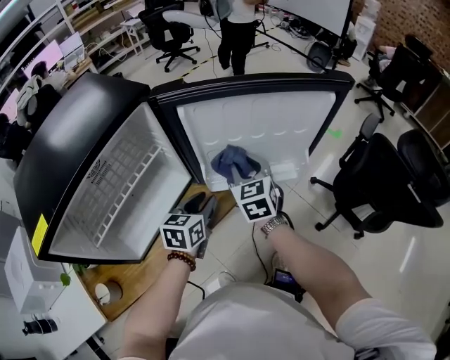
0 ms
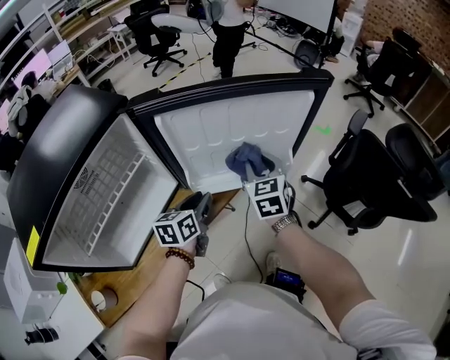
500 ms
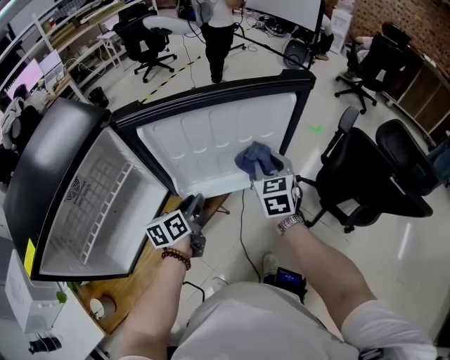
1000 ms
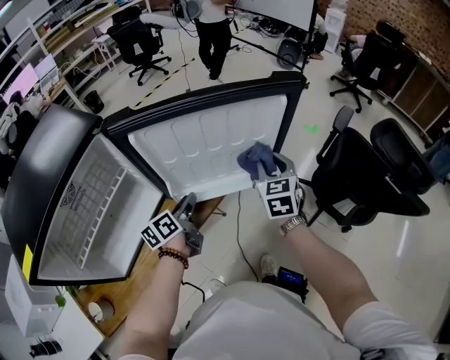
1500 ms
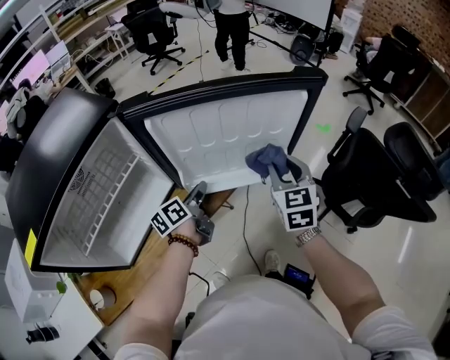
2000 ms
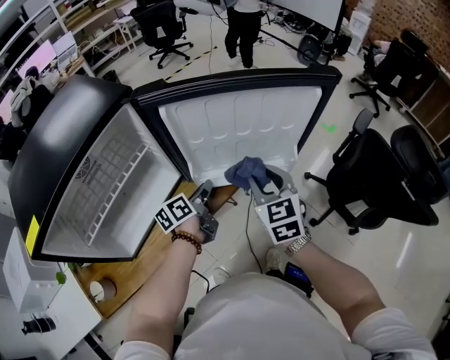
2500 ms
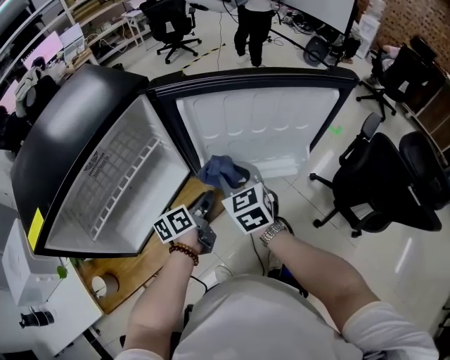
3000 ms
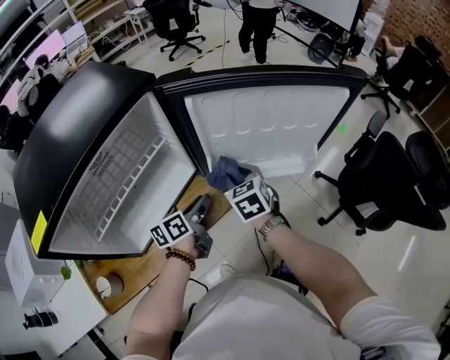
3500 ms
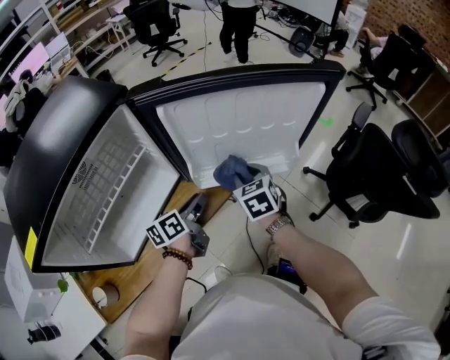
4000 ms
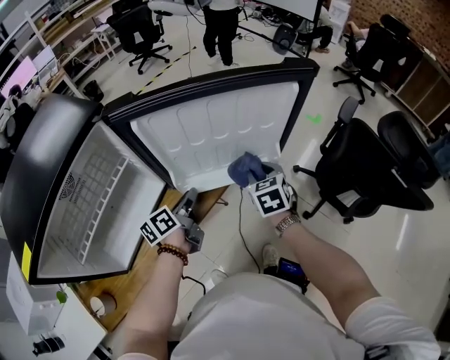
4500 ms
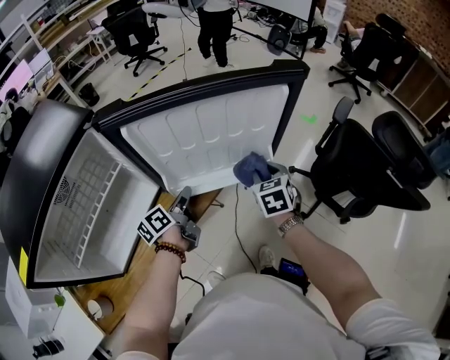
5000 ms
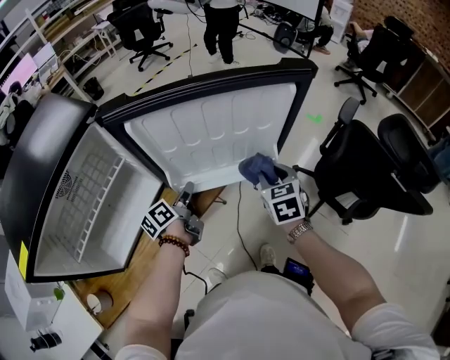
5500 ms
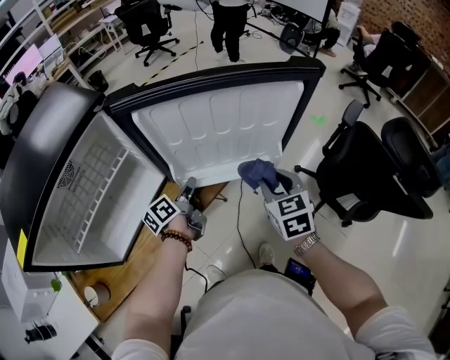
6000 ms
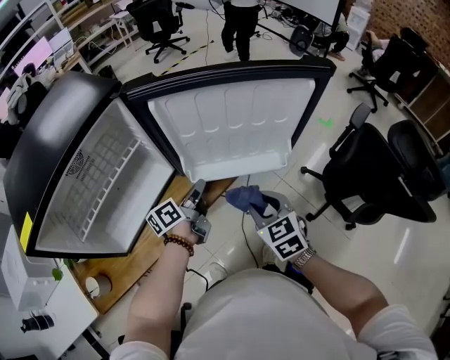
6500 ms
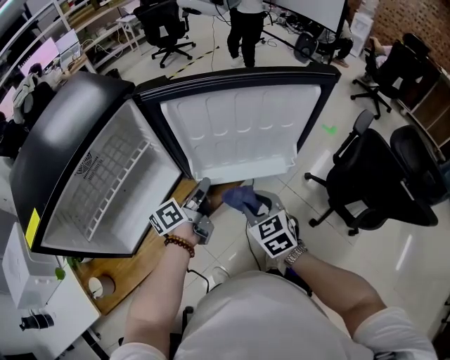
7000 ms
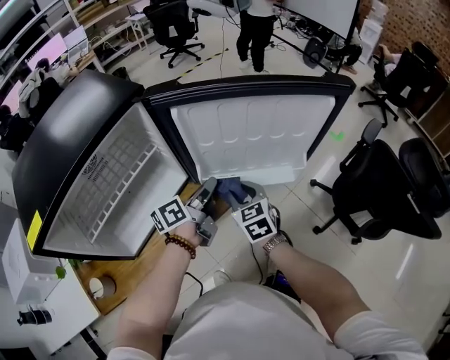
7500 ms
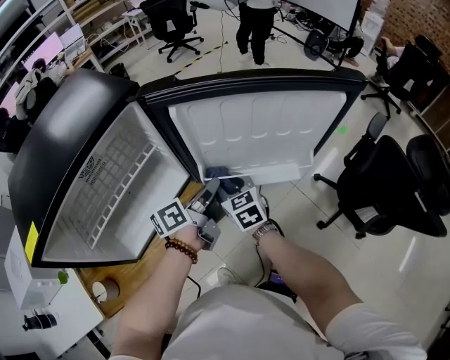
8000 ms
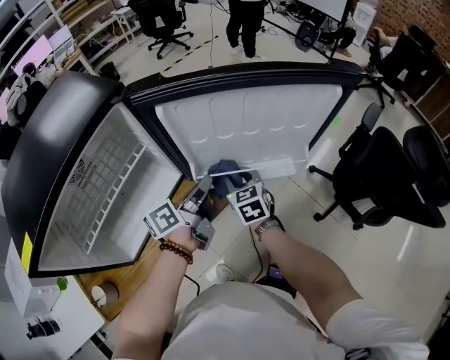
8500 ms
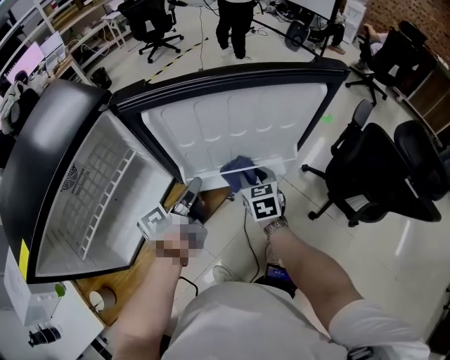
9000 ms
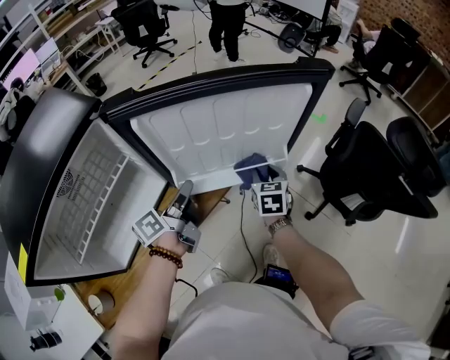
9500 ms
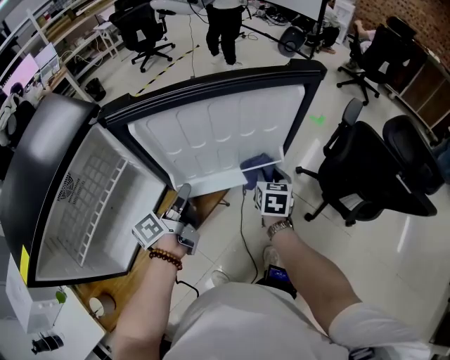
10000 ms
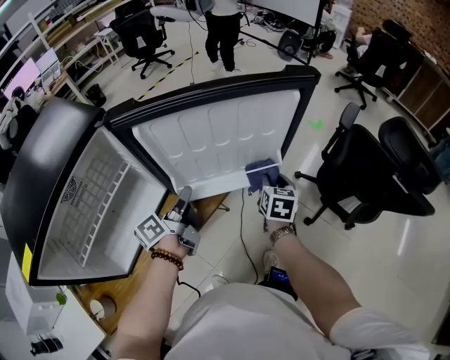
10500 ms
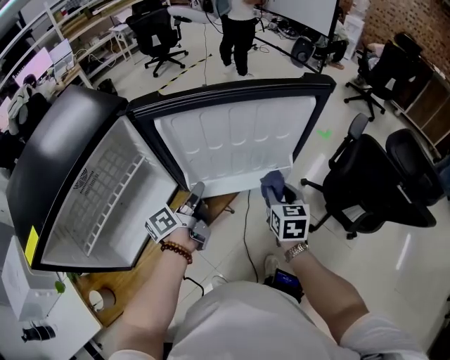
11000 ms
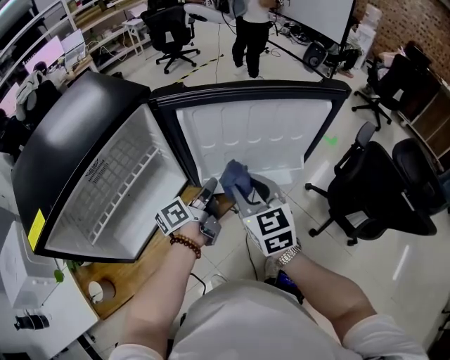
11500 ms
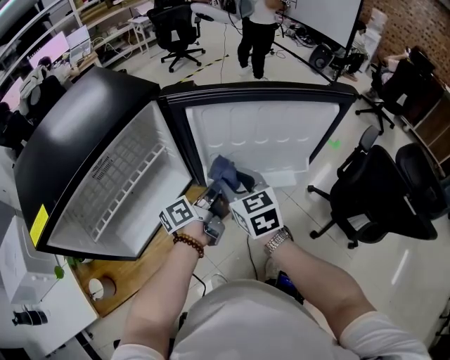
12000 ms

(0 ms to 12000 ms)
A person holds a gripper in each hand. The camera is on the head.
0 ms - 2000 ms: The left gripper shifts some 5 cm forward, and rotates around the line of its fingers by roughly 40 degrees, counterclockwise from behind, while the right gripper moves to the right, about 15 cm.
2000 ms - 4000 ms: The right gripper shifts some 15 cm to the left and downward, and changes its angle by some 20 degrees. Meanwhile the left gripper goes approximately 5 cm backward.
4000 ms - 6000 ms: The left gripper heads forward, covering roughly 5 cm. The right gripper moves to the right, some 15 cm.
6000 ms - 8000 ms: The left gripper heads upward, covering approximately 5 cm. Meanwhile the right gripper travels to the left by roughly 20 cm.
8000 ms - 10000 ms: The right gripper moves to the right, about 25 cm, and changes its angle by roughly 40 degrees.
10000 ms - 12000 ms: The right gripper goes about 25 cm to the left, upward and backward, and turns by roughly 40 degrees.

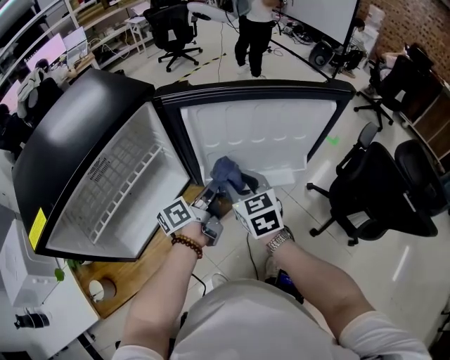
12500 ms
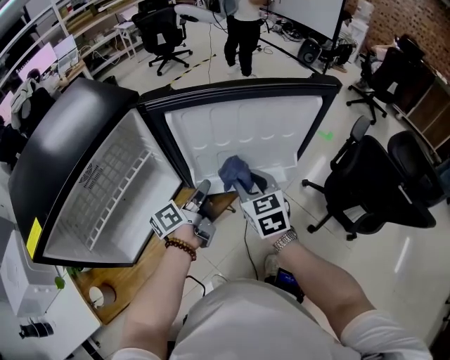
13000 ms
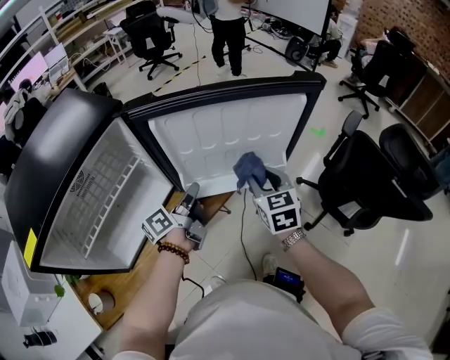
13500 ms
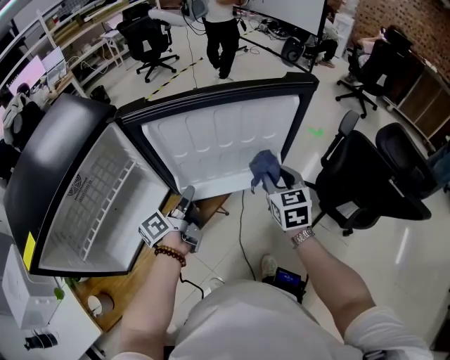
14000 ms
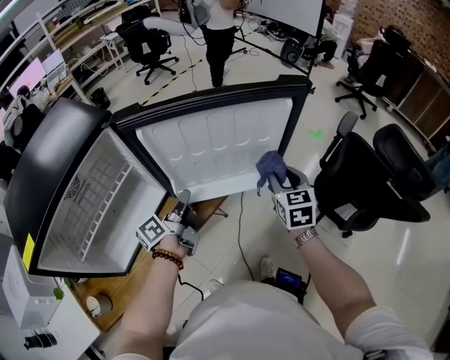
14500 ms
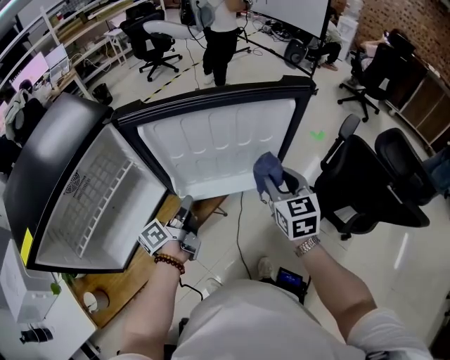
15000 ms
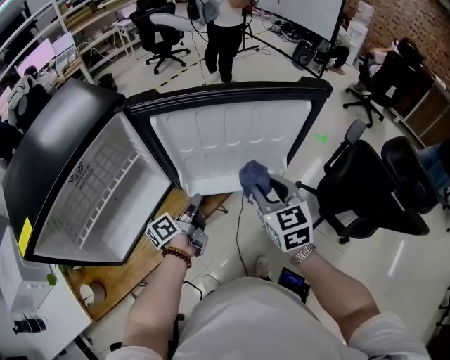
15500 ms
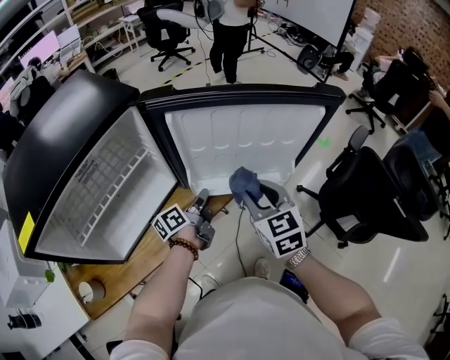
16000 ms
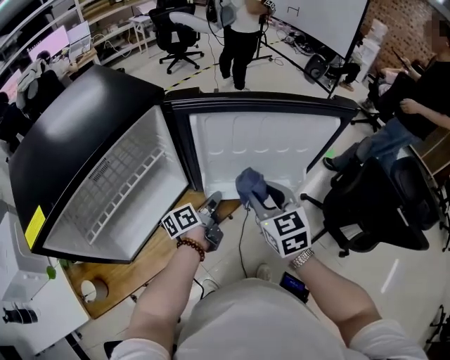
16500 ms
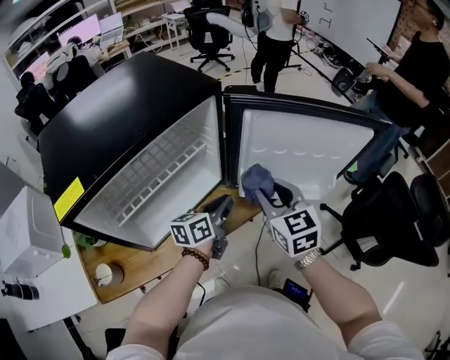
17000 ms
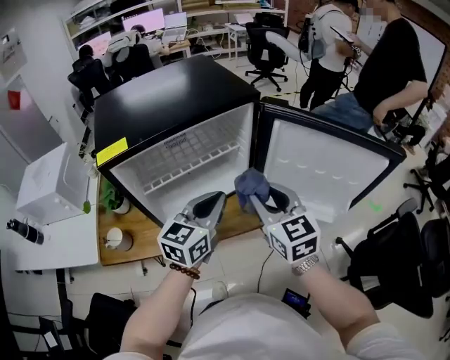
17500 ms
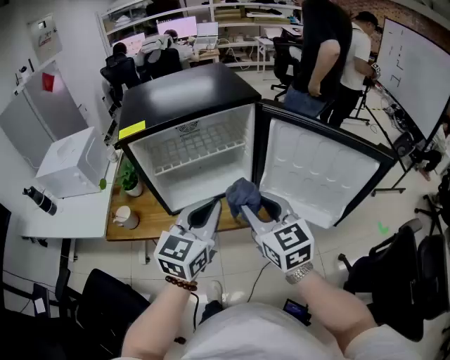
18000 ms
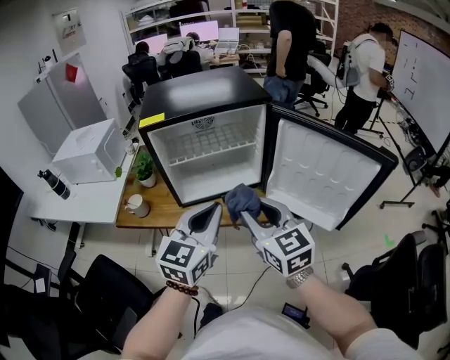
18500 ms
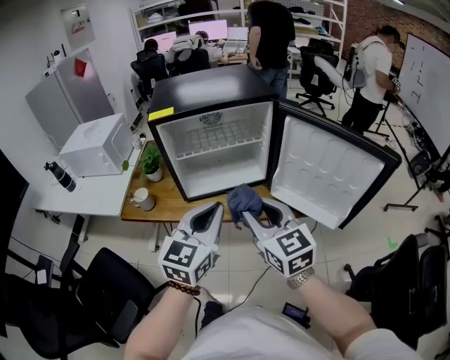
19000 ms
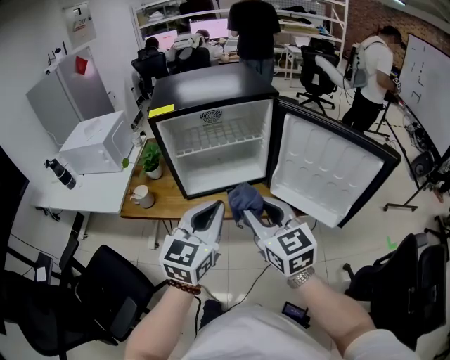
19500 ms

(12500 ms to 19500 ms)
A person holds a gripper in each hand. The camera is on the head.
12500 ms - 14500 ms: The right gripper heads to the right, covering roughly 25 cm, and swivels some 20 degrees.
14500 ms - 16000 ms: The left gripper travels downward by roughly 10 cm. Meanwhile the right gripper is displaced to the left and backward by roughly 15 cm, and rotates about 20 degrees.
16000 ms - 17500 ms: The right gripper heads to the left and upward, covering some 20 cm, and rotates roughly 30 degrees; the left gripper travels upward, backward and to the left by approximately 25 cm, and rolls clockwise, seen from behind, by roughly 60 degrees.
17500 ms - 19500 ms: Both grippers travel together backward, roughly 15 cm. The left gripper turns by about 30 degrees. The right gripper turns by roughly 20 degrees.

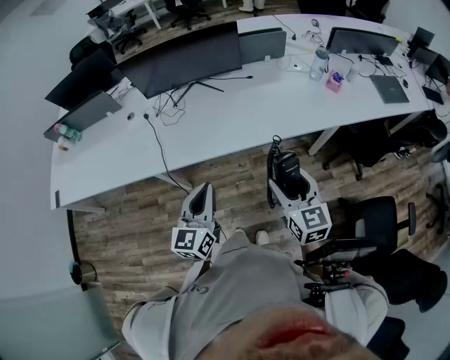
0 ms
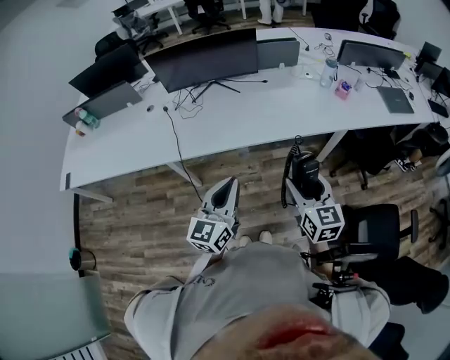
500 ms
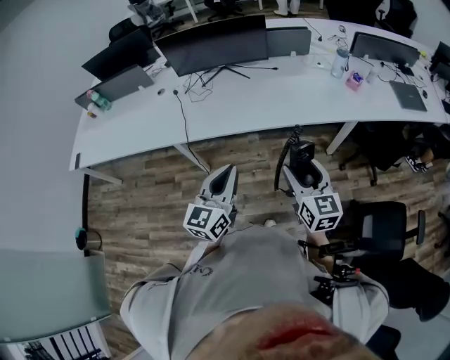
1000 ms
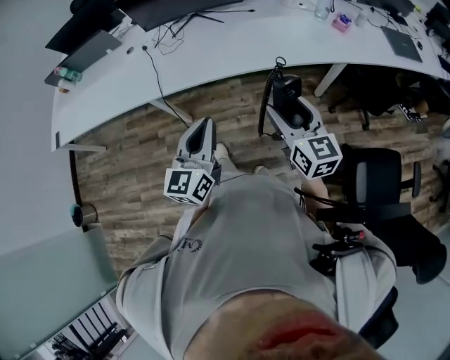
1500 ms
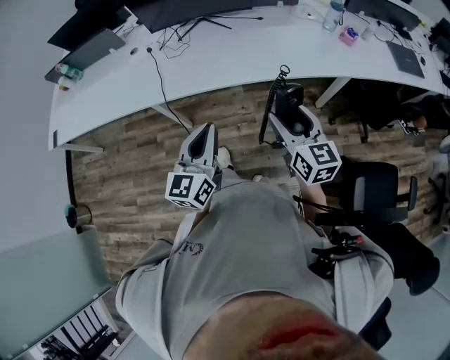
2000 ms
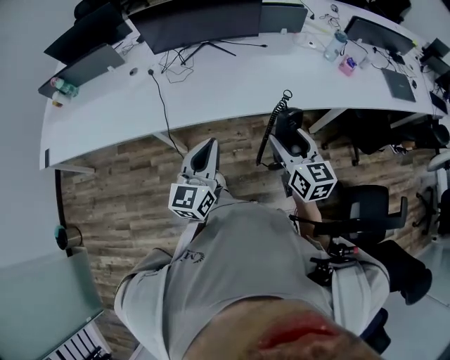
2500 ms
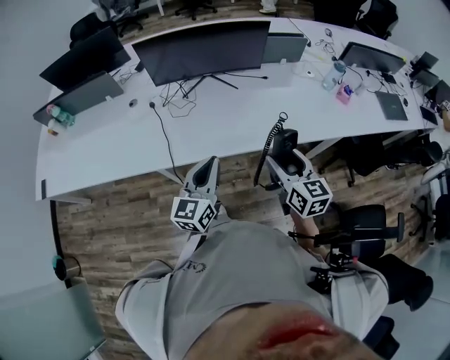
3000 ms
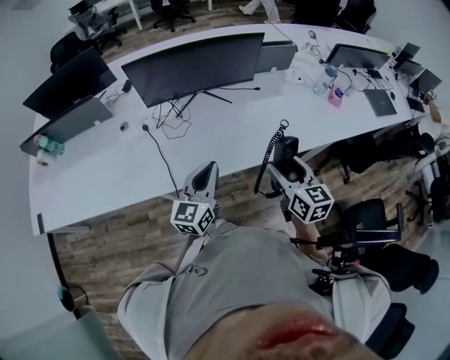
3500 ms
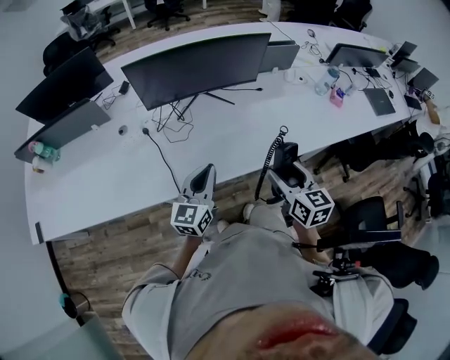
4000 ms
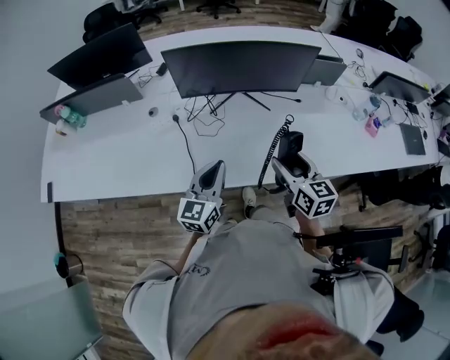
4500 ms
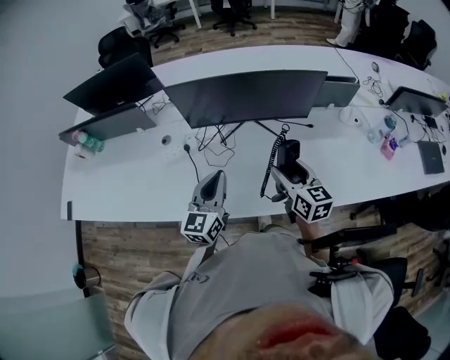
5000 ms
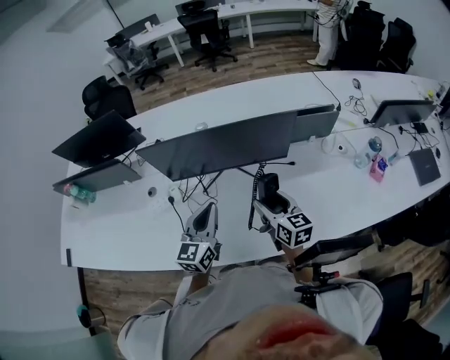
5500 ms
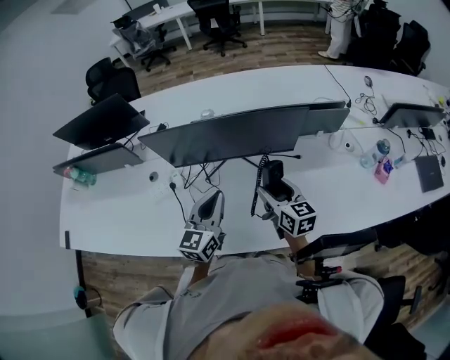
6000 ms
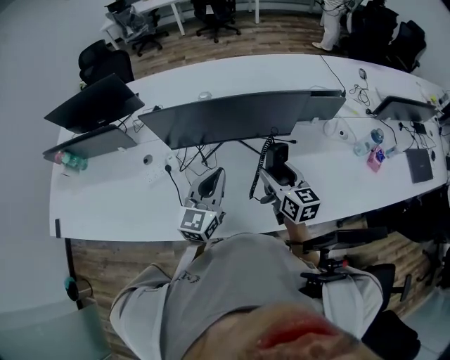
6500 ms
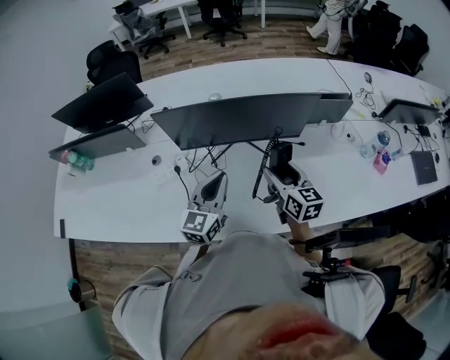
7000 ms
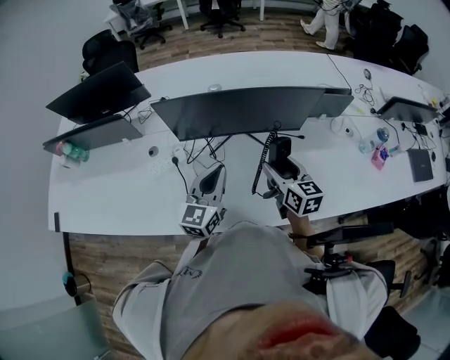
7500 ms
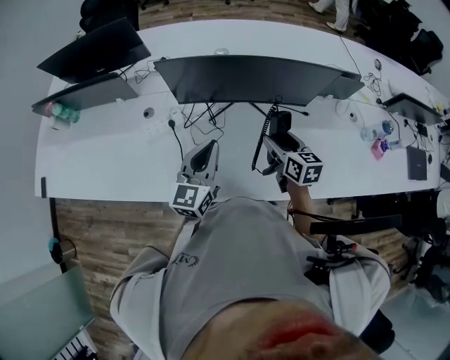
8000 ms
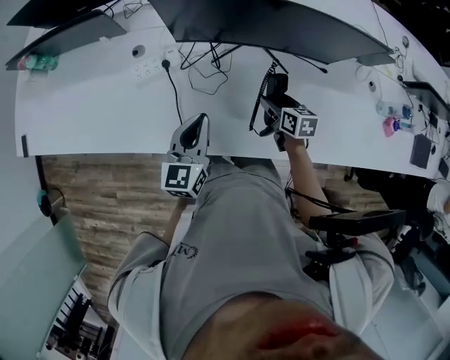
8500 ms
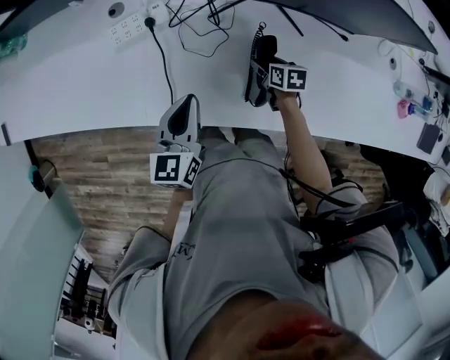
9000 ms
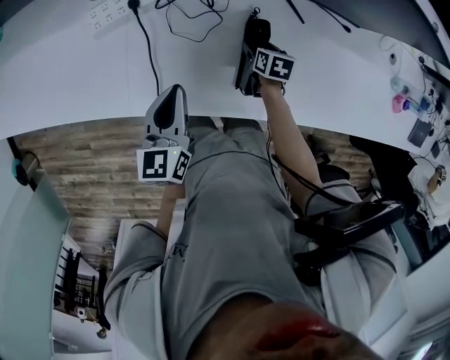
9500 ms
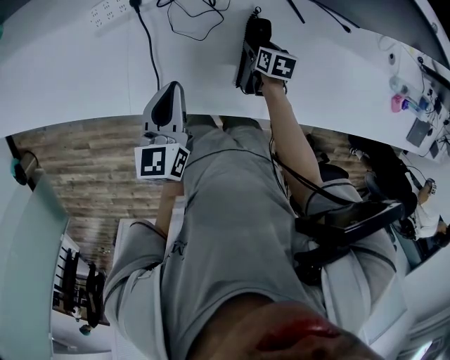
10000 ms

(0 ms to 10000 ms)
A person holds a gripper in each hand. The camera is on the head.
0 ms - 2000 ms: The left gripper heads backward, covering approximately 10 cm; the right gripper shifts roughly 5 cm backward.
2000 ms - 4000 ms: The two grippers go approximately 30 cm forward and to the left.
4000 ms - 6000 ms: Both grippers travel together forward, some 25 cm.
6000 ms - 8000 ms: The right gripper heads to the left, covering some 5 cm; the left gripper goes approximately 10 cm to the left.
8000 ms - 10000 ms: The right gripper travels downward by roughly 35 cm, and angles its fingers downward, by about 40 degrees. The left gripper travels downward and to the left by approximately 20 cm, and turns by roughly 30 degrees.
